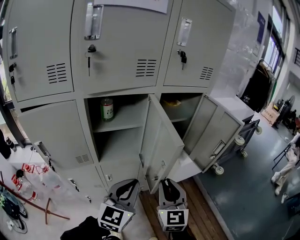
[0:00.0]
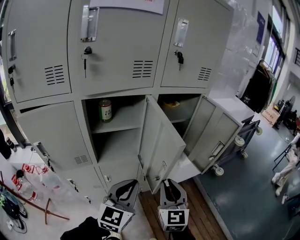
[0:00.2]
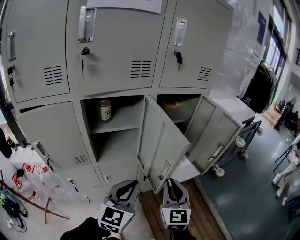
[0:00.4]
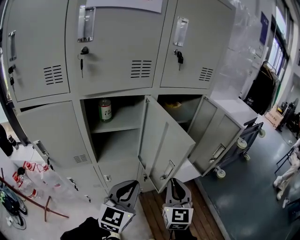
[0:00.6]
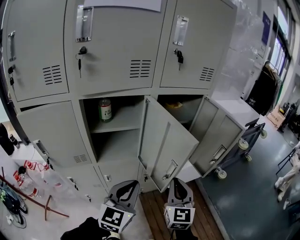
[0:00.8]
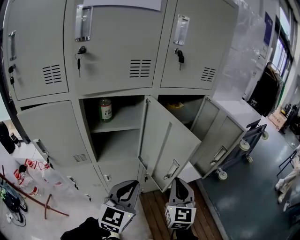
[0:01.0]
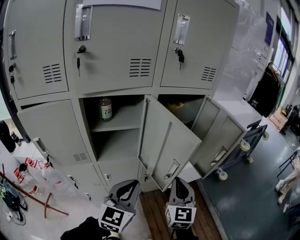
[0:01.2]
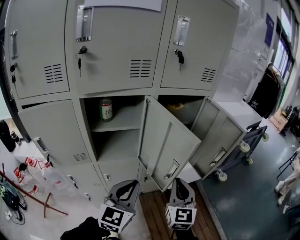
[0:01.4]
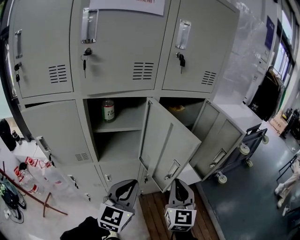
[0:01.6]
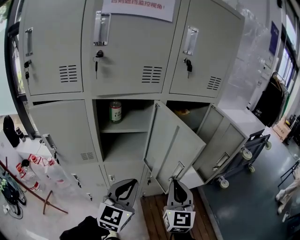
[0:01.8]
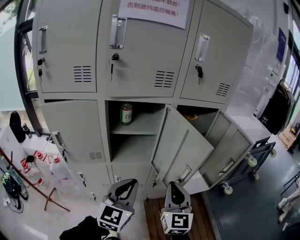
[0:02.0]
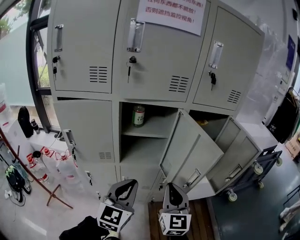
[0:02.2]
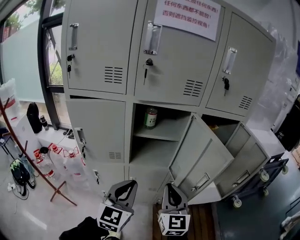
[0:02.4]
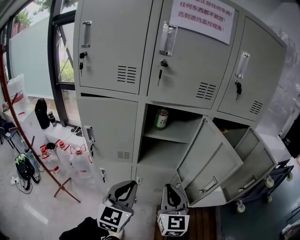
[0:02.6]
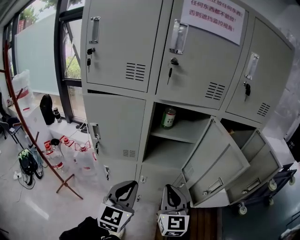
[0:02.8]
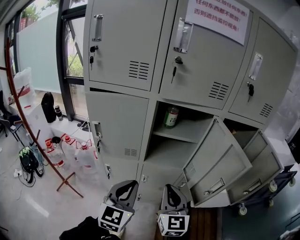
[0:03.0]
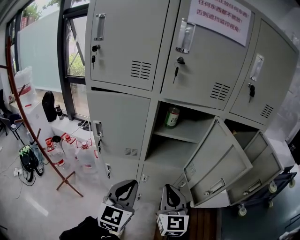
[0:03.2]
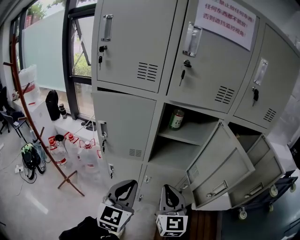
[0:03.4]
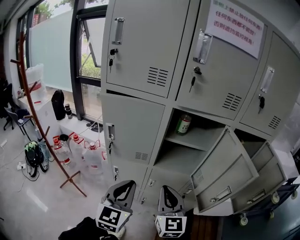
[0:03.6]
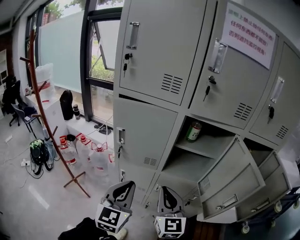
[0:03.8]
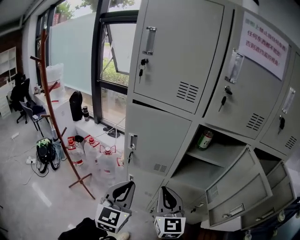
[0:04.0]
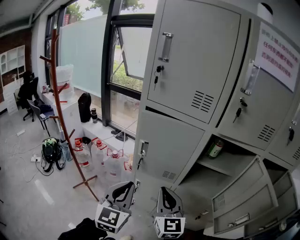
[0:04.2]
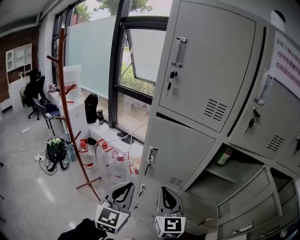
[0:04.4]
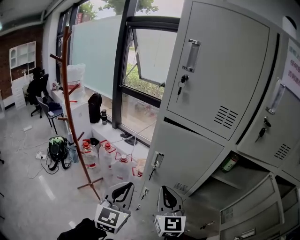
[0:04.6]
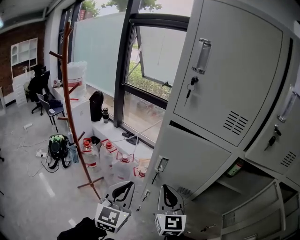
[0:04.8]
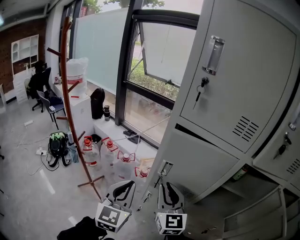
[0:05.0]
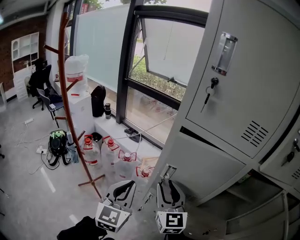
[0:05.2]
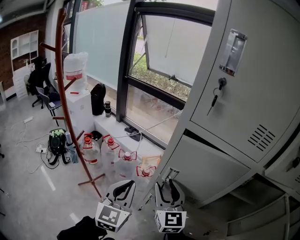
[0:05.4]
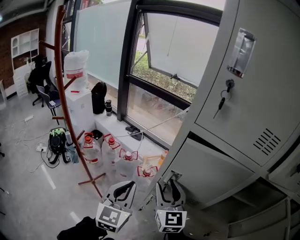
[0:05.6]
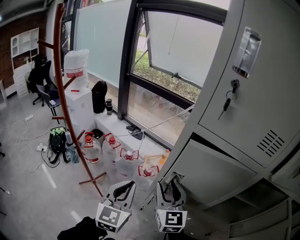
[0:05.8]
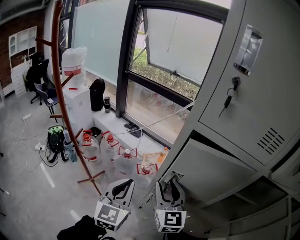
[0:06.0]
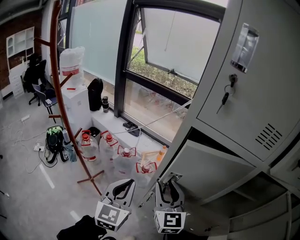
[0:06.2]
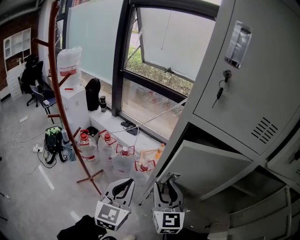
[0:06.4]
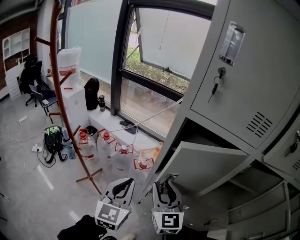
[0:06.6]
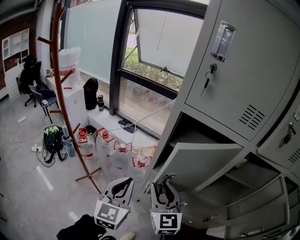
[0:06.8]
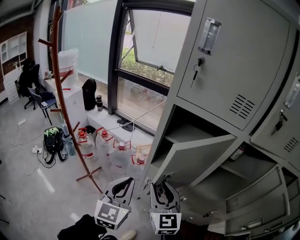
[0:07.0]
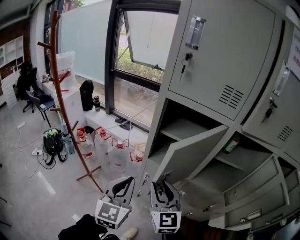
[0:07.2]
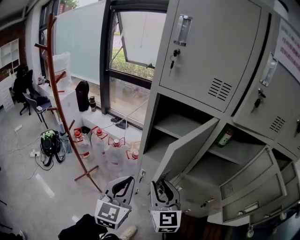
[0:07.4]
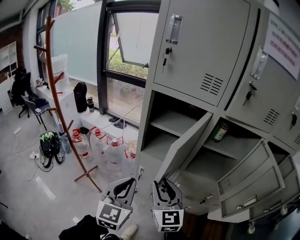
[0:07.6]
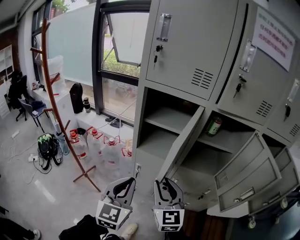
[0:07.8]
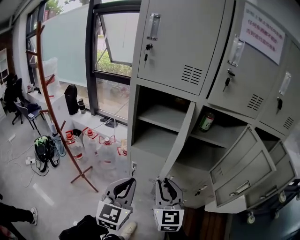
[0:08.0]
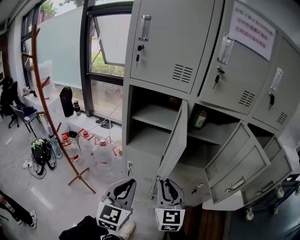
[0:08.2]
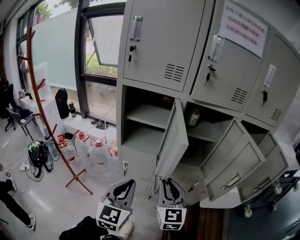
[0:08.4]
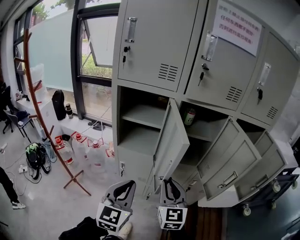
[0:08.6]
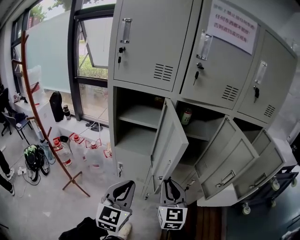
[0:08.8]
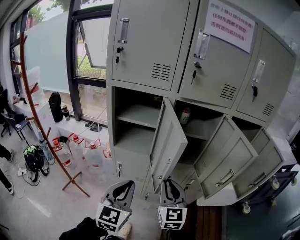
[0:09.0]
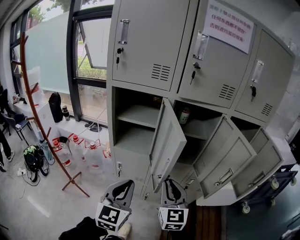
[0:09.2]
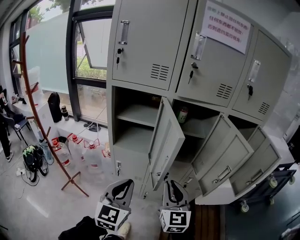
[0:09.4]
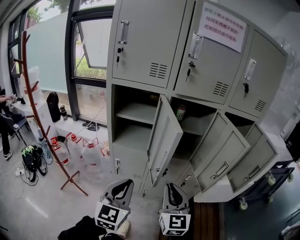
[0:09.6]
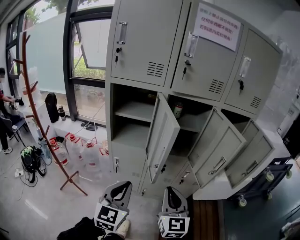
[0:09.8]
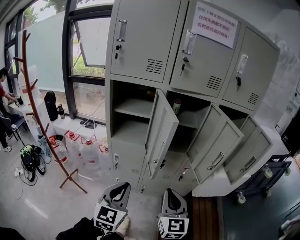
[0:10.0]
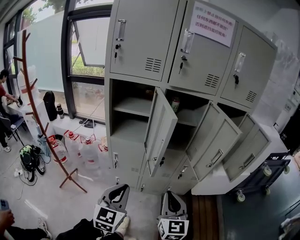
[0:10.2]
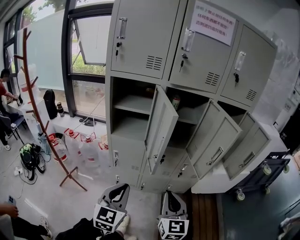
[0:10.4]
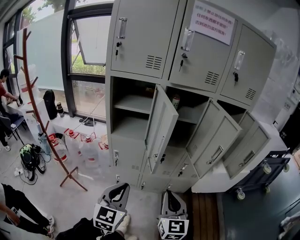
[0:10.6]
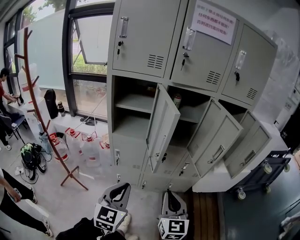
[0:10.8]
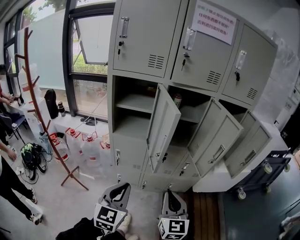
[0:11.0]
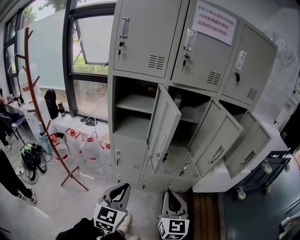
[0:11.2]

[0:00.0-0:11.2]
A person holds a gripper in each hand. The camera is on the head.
0.0 to 1.6 s: The right gripper goes some 5 cm to the right.
1.6 to 3.2 s: The left gripper ends up approximately 20 cm from where it was, and turns by some 30 degrees. The right gripper shifts by roughly 20 cm, and changes its angle by some 30 degrees.
3.2 to 4.8 s: The right gripper changes place by approximately 30 cm, and changes its angle by roughly 30 degrees. Meanwhile the left gripper moves approximately 30 cm, and changes its angle by some 30 degrees.
4.8 to 6.4 s: The left gripper goes some 10 cm forward, while the right gripper goes roughly 10 cm forward and to the left, and opens its fingers.
6.4 to 8.0 s: The two grippers go about 25 cm backward and to the right.
8.0 to 9.6 s: The right gripper shifts about 15 cm to the right and backward. The left gripper travels to the right and backward by about 10 cm.
9.6 to 11.2 s: The left gripper goes approximately 10 cm backward; the right gripper moves backward and downward, approximately 10 cm.

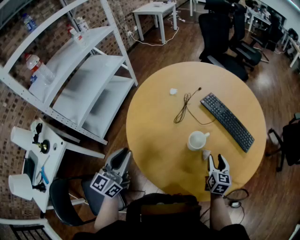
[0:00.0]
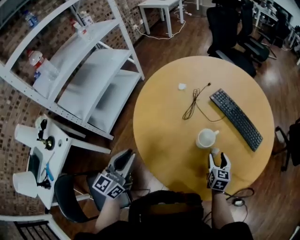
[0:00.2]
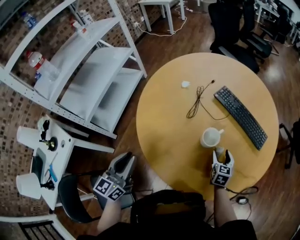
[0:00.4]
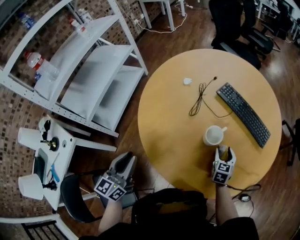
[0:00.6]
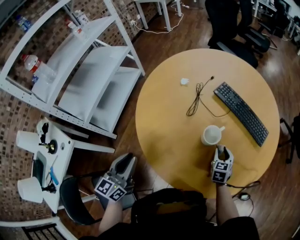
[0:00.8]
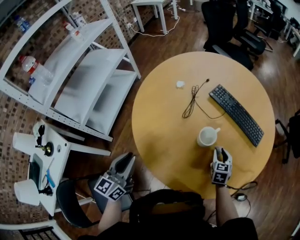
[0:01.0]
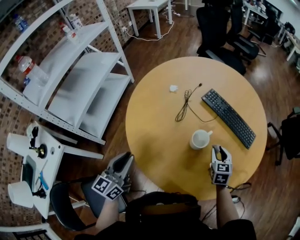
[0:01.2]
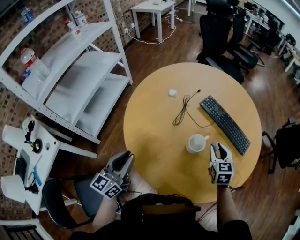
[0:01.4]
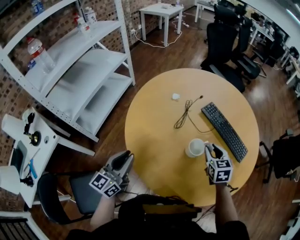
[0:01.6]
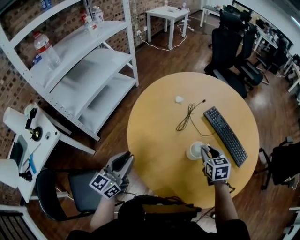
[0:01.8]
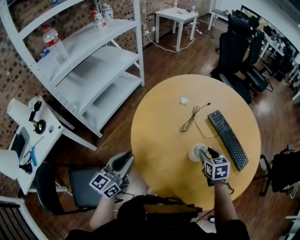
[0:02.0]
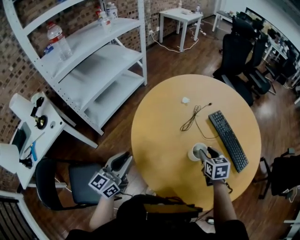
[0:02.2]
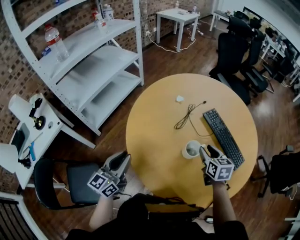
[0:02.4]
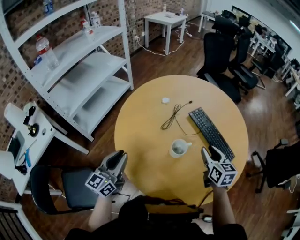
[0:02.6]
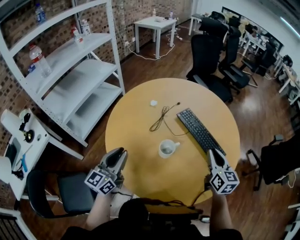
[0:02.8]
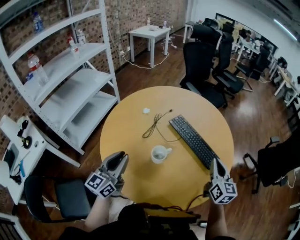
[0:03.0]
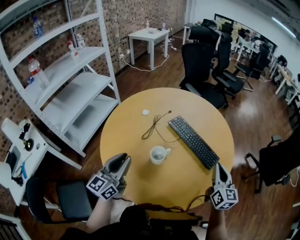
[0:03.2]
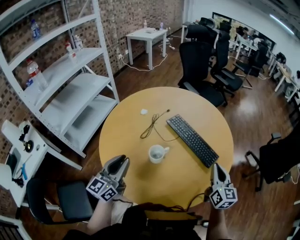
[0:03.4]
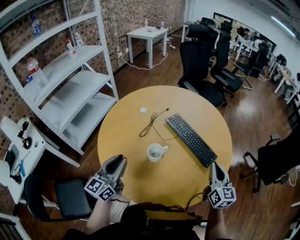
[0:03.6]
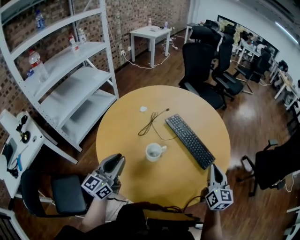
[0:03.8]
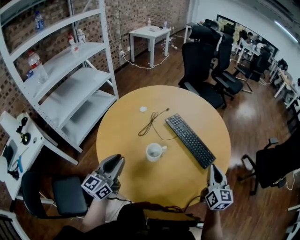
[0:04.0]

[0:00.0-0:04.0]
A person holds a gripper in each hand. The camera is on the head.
0.0 to 1.4 s: The right gripper travels forward and upward by some 10 cm.
1.4 to 2.6 s: The left gripper shifts by some 5 cm; the right gripper shifts roughly 5 cm upward, goes to the left and returns, about 5 cm each way, and rotates some 20 degrees.
2.6 to 4.0 s: The left gripper travels to the right by some 10 cm. The right gripper goes about 20 cm to the right and backward, turns by approximately 20 degrees, and closes.

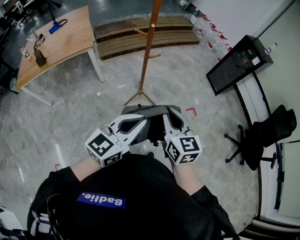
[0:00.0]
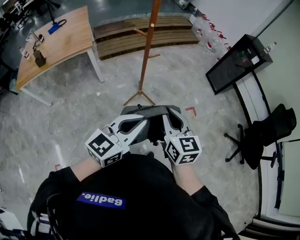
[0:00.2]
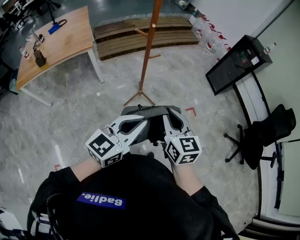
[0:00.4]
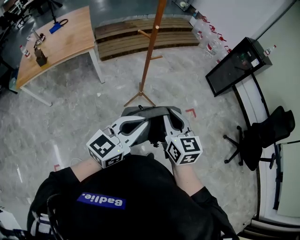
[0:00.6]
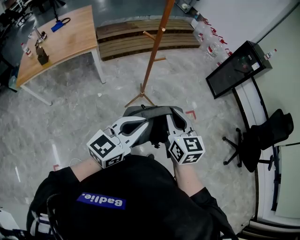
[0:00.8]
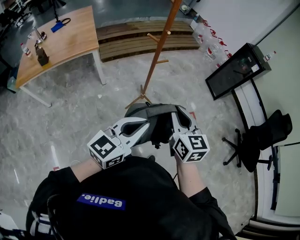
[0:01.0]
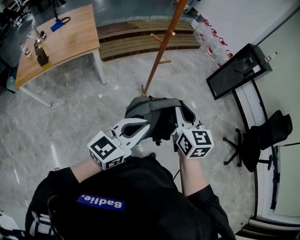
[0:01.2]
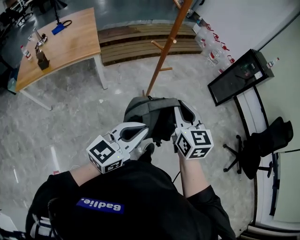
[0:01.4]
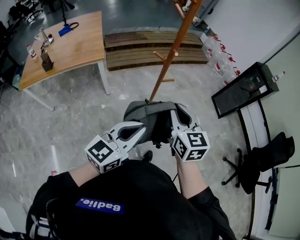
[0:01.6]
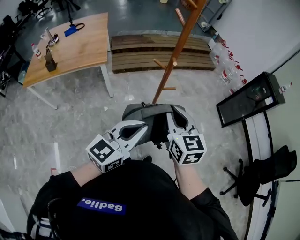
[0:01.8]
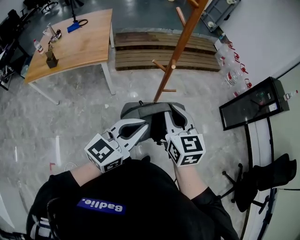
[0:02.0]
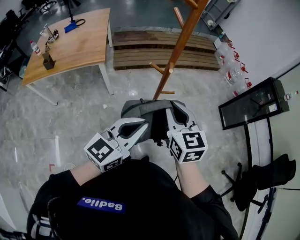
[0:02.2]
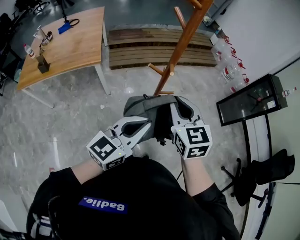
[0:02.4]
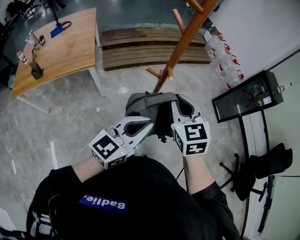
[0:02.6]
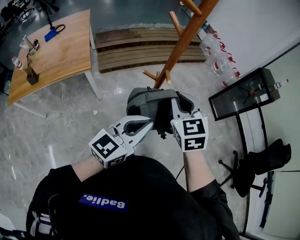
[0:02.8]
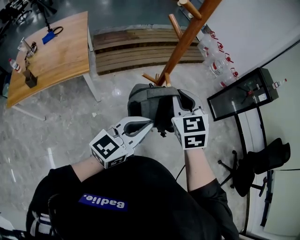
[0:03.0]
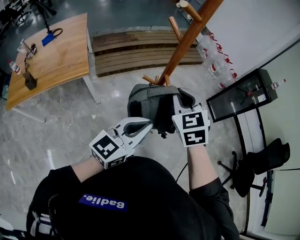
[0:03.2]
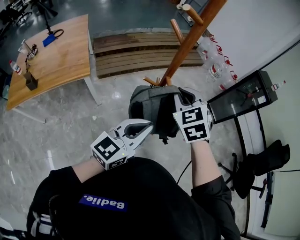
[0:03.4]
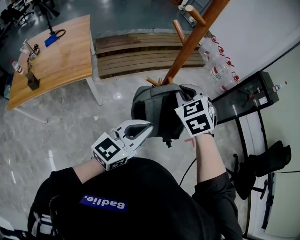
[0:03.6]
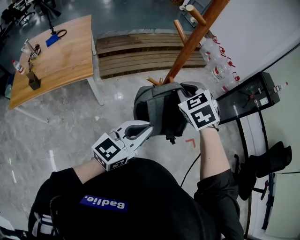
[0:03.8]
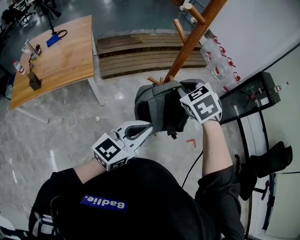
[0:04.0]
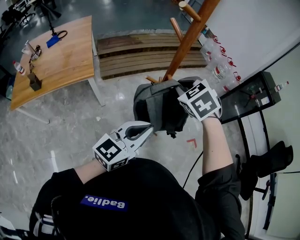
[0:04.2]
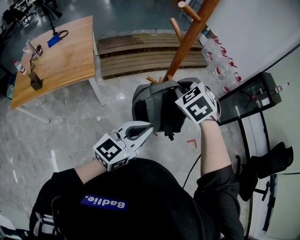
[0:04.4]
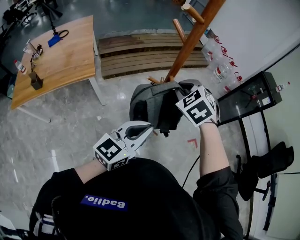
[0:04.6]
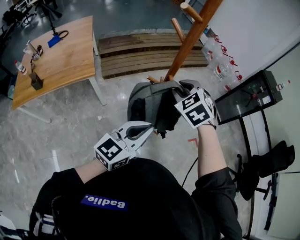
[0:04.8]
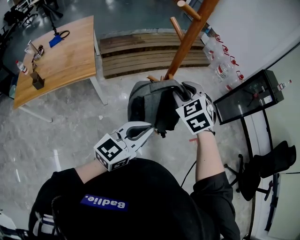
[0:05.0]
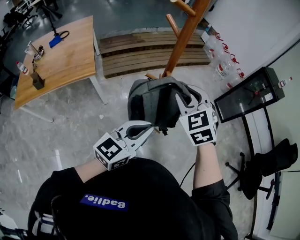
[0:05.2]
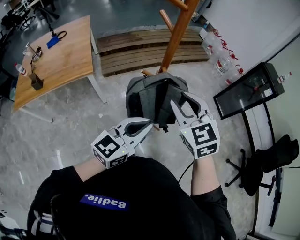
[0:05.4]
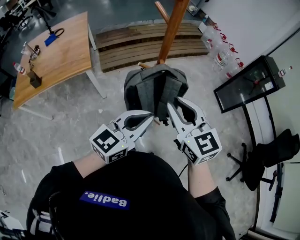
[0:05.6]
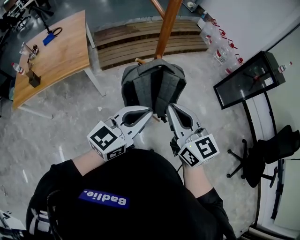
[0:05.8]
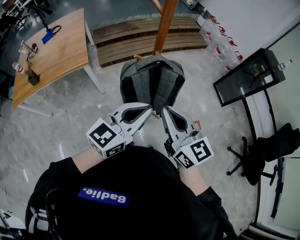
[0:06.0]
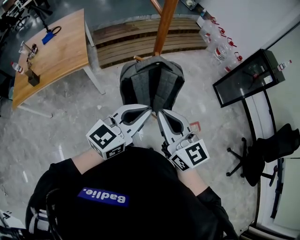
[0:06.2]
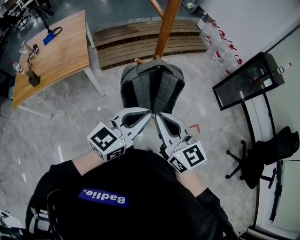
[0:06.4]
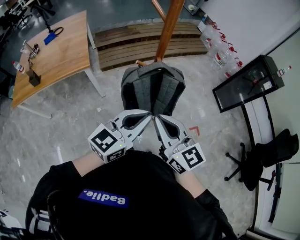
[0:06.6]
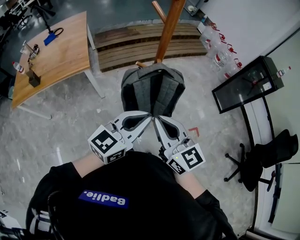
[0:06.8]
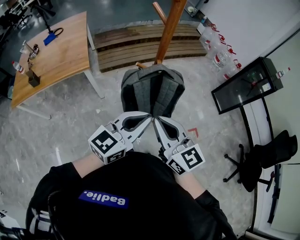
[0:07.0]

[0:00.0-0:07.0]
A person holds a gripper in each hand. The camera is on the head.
0.0 to 1.4 s: The right gripper goes approximately 10 cm to the left and forward; the left gripper moves to the left, roughly 10 cm.
1.4 to 2.8 s: Both grippers travel together forward, some 25 cm. The right gripper turns by approximately 20 degrees.
2.8 to 4.2 s: The right gripper travels forward by roughly 5 cm, and swivels approximately 30 degrees.
4.2 to 5.6 s: The right gripper goes roughly 15 cm backward and to the right, and tips its fingers upward by roughly 40 degrees.
5.6 to 7.0 s: The right gripper shifts approximately 5 cm backward, and closes.

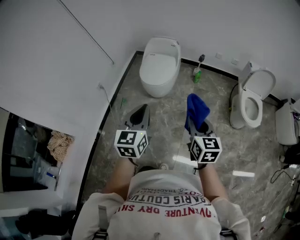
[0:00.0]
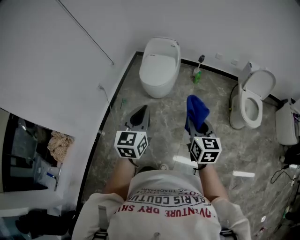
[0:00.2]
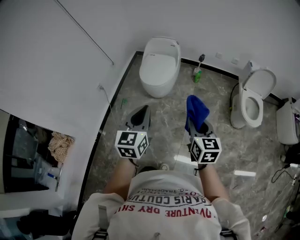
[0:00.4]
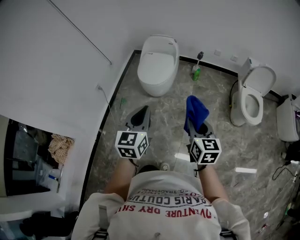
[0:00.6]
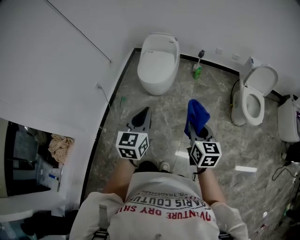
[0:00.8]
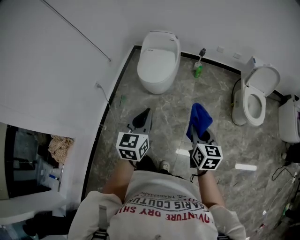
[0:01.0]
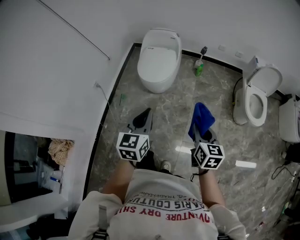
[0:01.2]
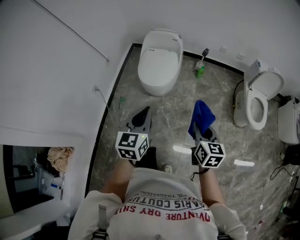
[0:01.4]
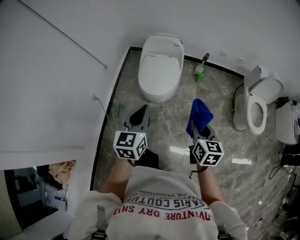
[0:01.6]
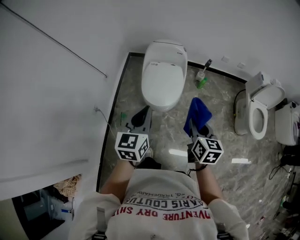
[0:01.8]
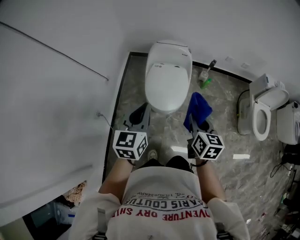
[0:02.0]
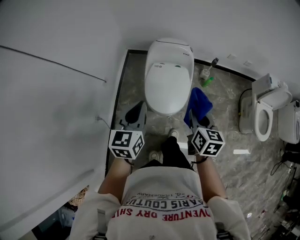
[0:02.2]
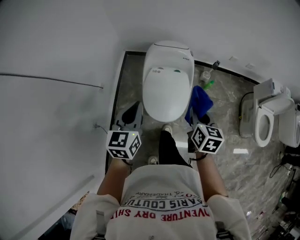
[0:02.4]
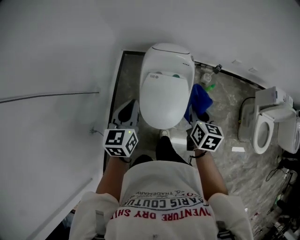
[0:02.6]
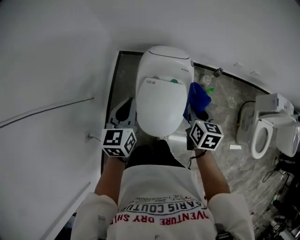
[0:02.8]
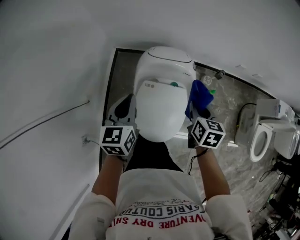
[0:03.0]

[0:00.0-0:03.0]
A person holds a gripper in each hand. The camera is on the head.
0.0 to 1.6 s: The right gripper heads forward, covering some 20 cm, while the left gripper moves forward and to the left, some 25 cm.
1.6 to 3.0 s: The pair of grippers is taken forward, about 60 cm.
